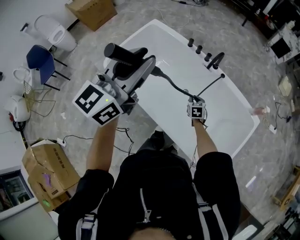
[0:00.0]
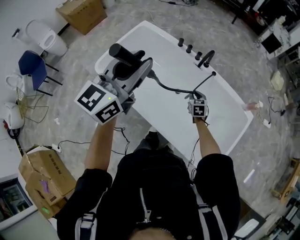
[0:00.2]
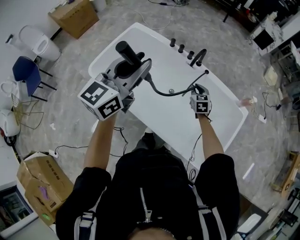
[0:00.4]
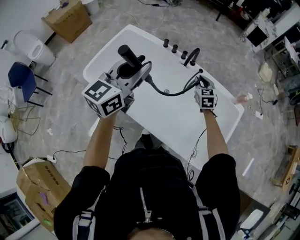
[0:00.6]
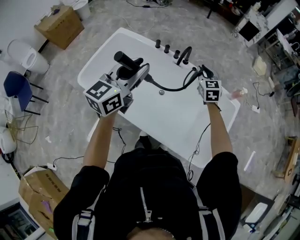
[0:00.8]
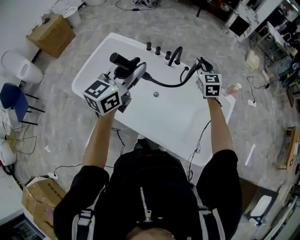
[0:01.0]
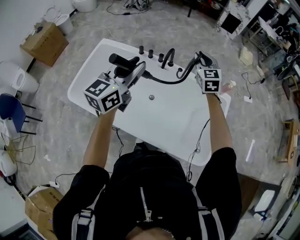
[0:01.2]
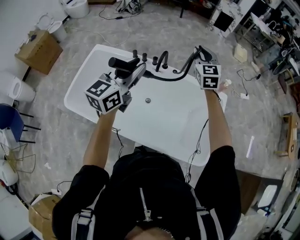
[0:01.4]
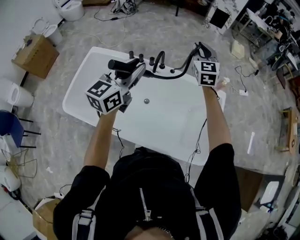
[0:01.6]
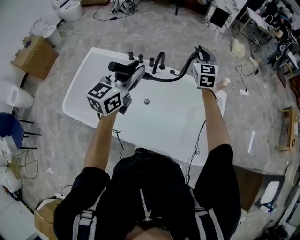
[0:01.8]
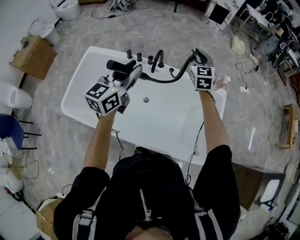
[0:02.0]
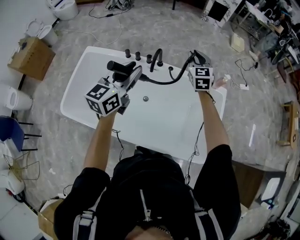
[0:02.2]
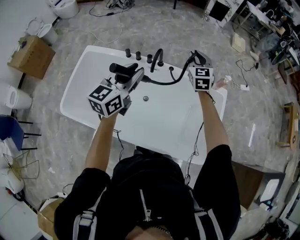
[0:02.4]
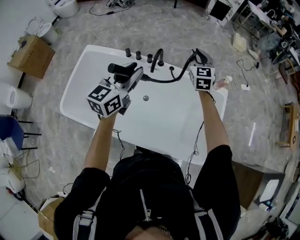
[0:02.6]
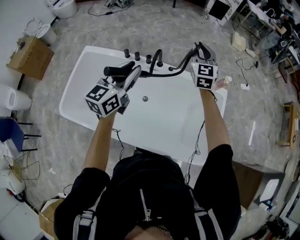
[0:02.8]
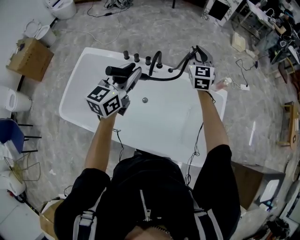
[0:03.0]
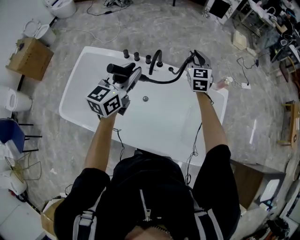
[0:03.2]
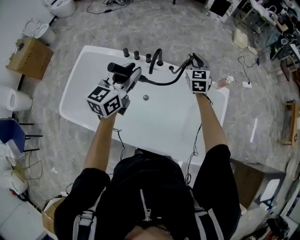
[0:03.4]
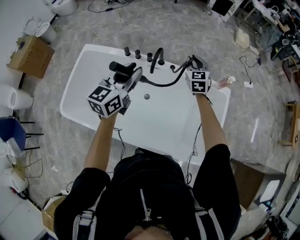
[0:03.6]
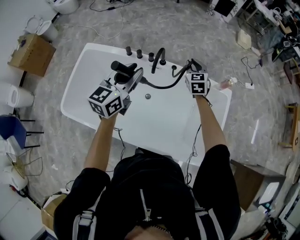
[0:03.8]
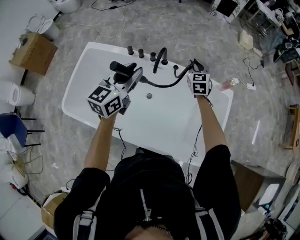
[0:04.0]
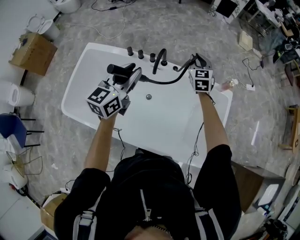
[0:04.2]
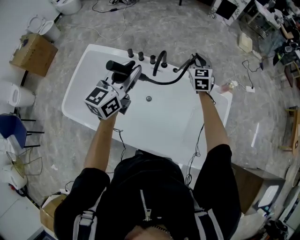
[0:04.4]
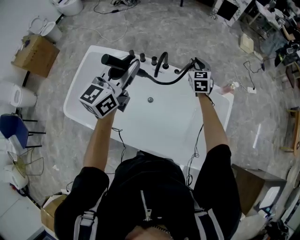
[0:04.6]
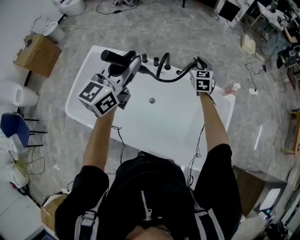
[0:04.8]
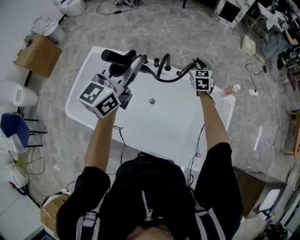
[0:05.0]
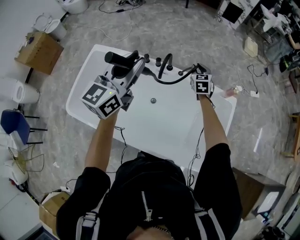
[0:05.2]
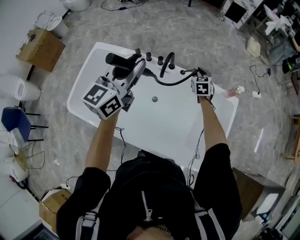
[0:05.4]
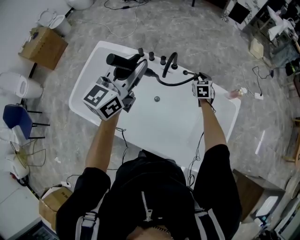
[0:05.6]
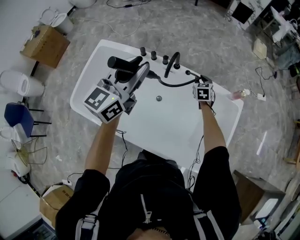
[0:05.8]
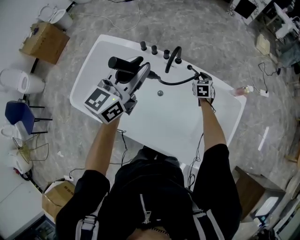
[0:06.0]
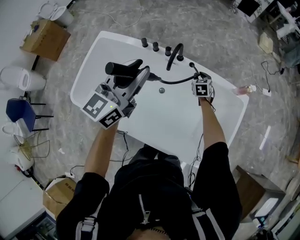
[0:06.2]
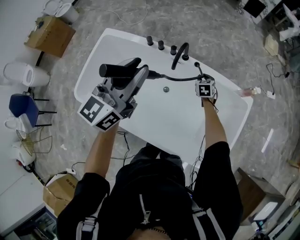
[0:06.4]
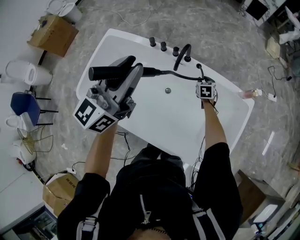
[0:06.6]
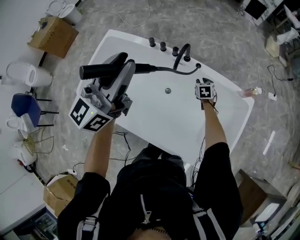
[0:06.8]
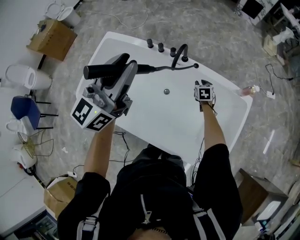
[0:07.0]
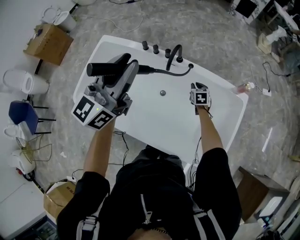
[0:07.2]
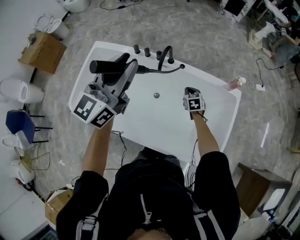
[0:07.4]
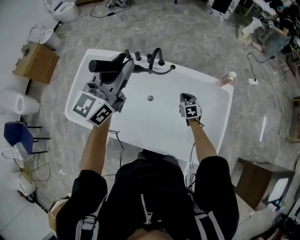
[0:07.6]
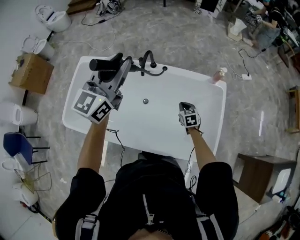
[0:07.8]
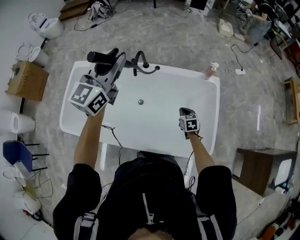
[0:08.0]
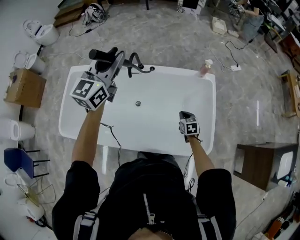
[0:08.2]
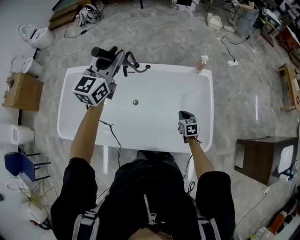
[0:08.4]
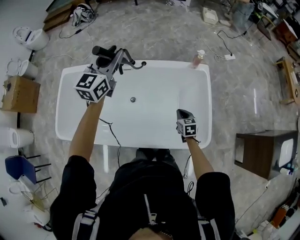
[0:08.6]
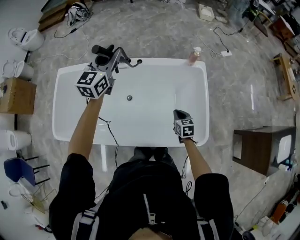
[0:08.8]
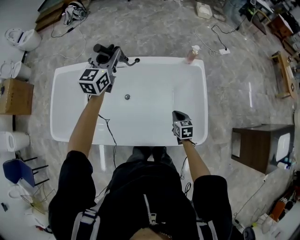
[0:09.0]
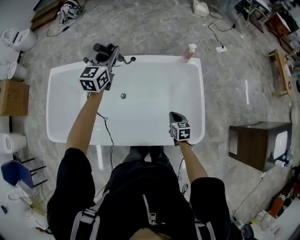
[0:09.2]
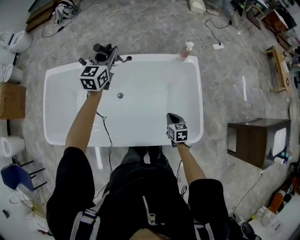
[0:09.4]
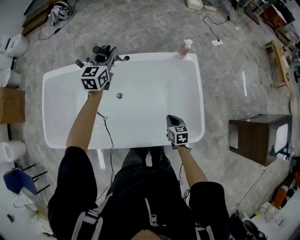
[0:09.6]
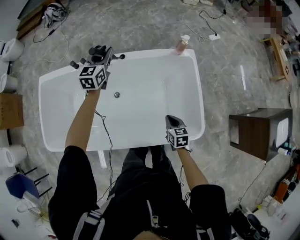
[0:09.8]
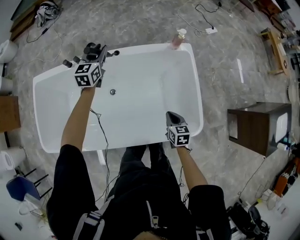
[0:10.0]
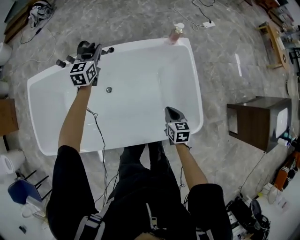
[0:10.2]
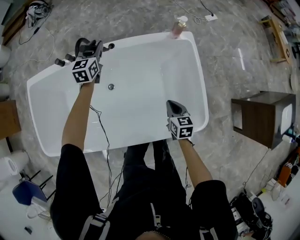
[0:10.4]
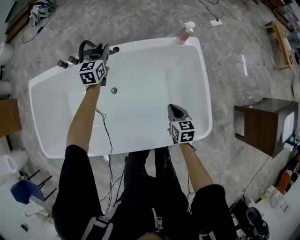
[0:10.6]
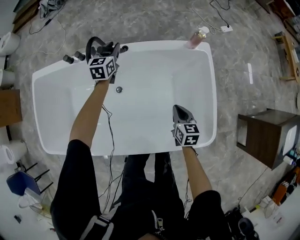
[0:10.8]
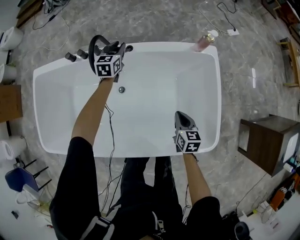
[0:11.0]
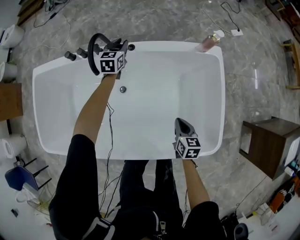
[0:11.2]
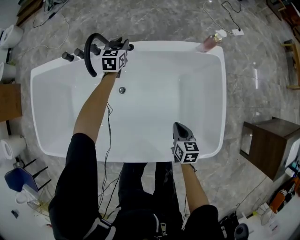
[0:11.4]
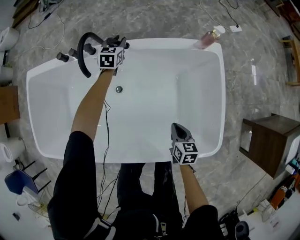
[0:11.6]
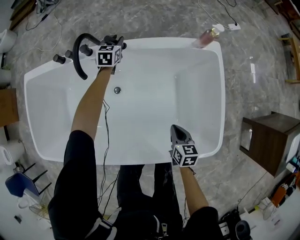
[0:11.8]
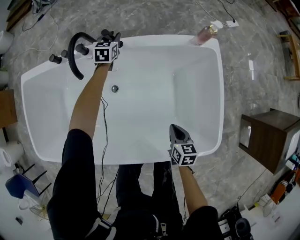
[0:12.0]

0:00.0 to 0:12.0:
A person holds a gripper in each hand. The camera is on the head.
0:00.0 to 0:01.6: The right gripper shifts about 50 cm upward and forward, and angles its fingers upward, by about 40 degrees. The left gripper shifts roughly 20 cm forward, to the right and downward, and rotates some 20 degrees.
0:01.6 to 0:03.0: The left gripper shifts roughly 10 cm forward and downward; the right gripper travels downward and forward by about 10 cm.
0:03.0 to 0:04.4: The right gripper shifts about 10 cm downward.
0:04.4 to 0:06.0: The right gripper shifts roughly 20 cm downward, and swivels some 20 degrees.
0:06.0 to 0:07.6: The left gripper is displaced upward by roughly 5 cm. The right gripper travels backward by approximately 15 cm.
0:07.6 to 0:09.0: The right gripper shifts some 25 cm backward and to the right, and swivels roughly 20 degrees; the left gripper is displaced forward, downward and to the right by roughly 20 cm.
0:09.0 to 0:10.4: The left gripper travels downward and forward by approximately 25 cm.
0:10.4 to 0:12.0: The right gripper shifts roughly 10 cm downward, while the left gripper shifts some 25 cm downward and forward.

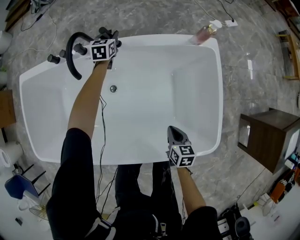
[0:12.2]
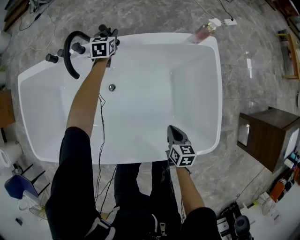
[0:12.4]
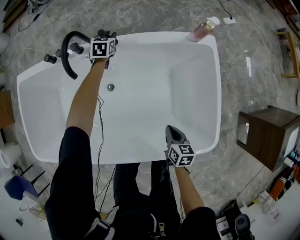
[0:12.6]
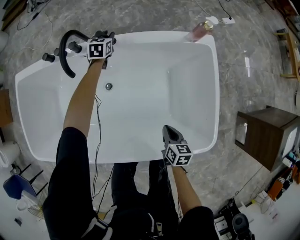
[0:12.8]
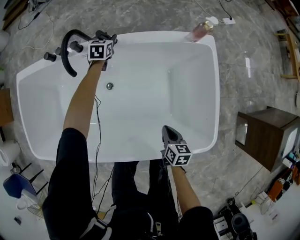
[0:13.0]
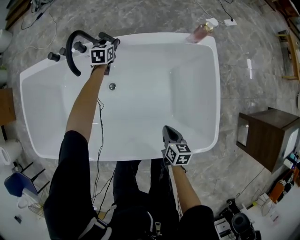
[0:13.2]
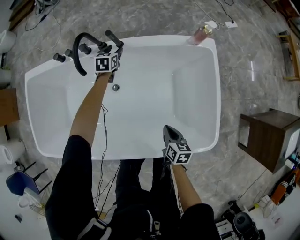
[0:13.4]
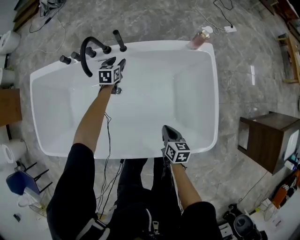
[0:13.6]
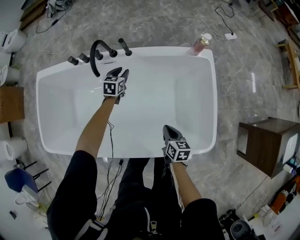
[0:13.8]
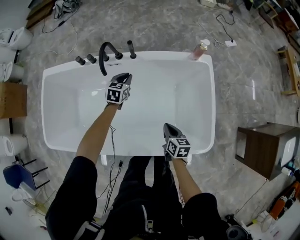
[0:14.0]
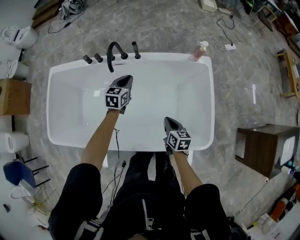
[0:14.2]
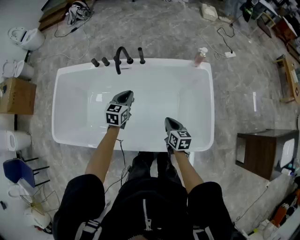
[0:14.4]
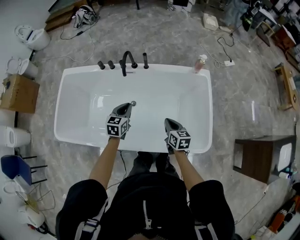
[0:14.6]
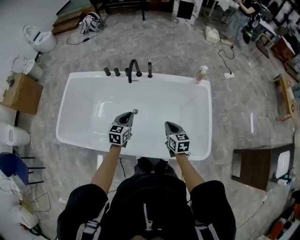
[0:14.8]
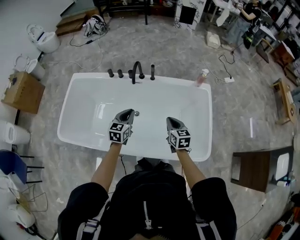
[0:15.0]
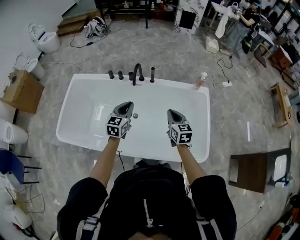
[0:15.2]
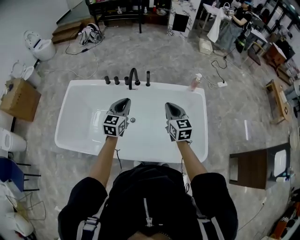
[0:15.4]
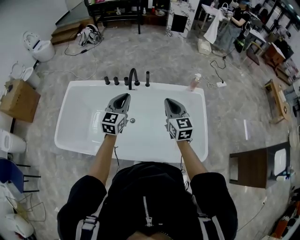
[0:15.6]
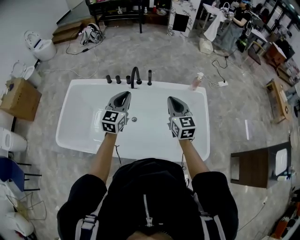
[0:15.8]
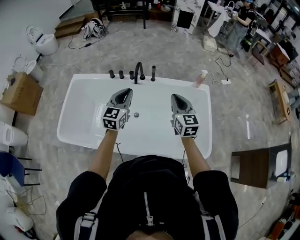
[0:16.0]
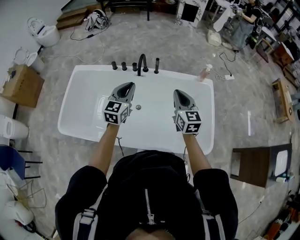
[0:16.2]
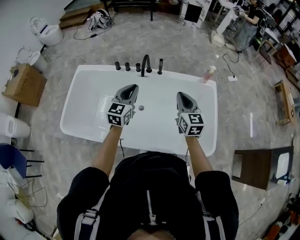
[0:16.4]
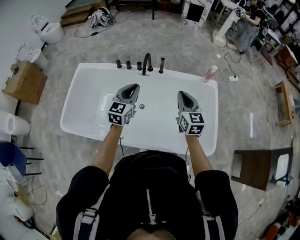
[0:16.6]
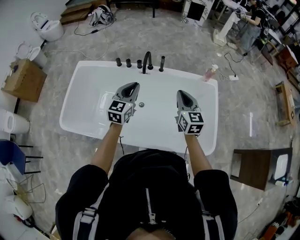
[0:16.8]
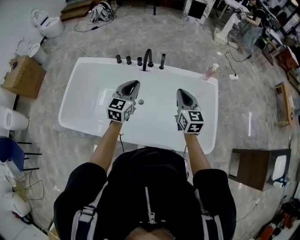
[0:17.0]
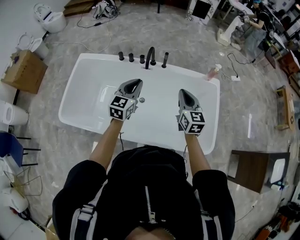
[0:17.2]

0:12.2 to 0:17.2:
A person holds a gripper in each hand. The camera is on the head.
0:12.2 to 0:13.8: The right gripper travels upward by some 5 cm, while the left gripper is displaced backward by roughly 20 cm.
0:13.8 to 0:15.6: The right gripper shifts about 35 cm upward, and points its fingers about 30 degrees further upward. Meanwhile the left gripper shifts roughly 40 cm upward and backward, tilts its fingers some 30 degrees upward, and closes.
0:15.6 to 0:17.2: There are only small adjustments of the grippers.

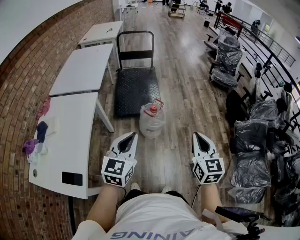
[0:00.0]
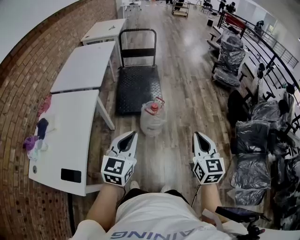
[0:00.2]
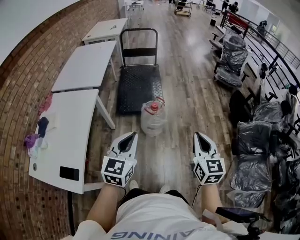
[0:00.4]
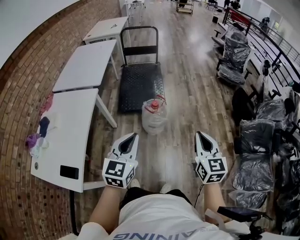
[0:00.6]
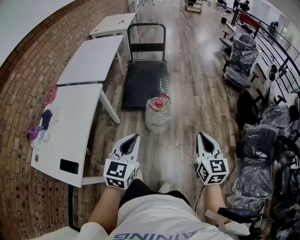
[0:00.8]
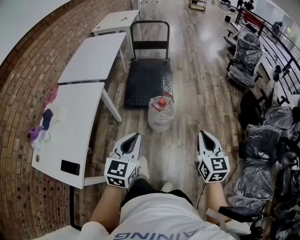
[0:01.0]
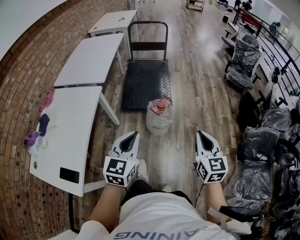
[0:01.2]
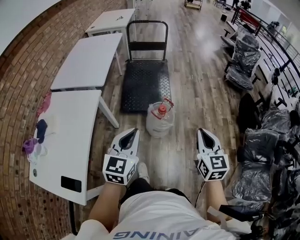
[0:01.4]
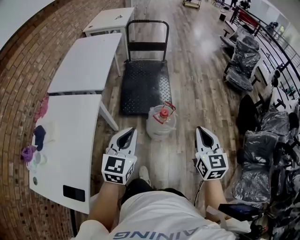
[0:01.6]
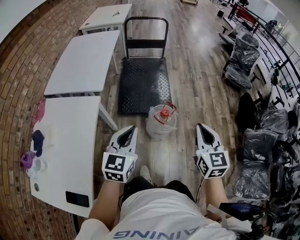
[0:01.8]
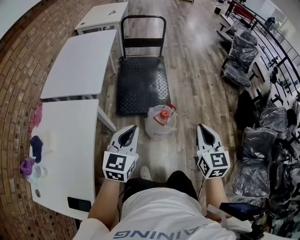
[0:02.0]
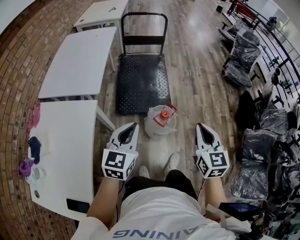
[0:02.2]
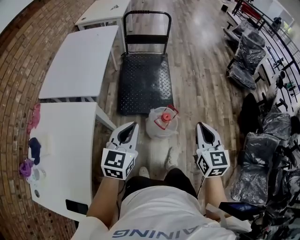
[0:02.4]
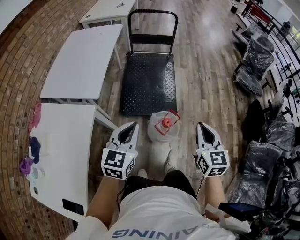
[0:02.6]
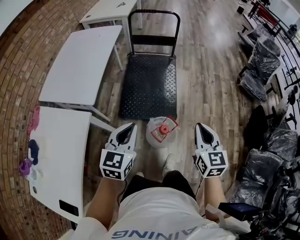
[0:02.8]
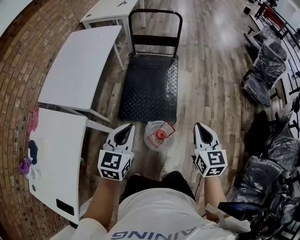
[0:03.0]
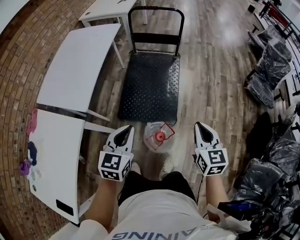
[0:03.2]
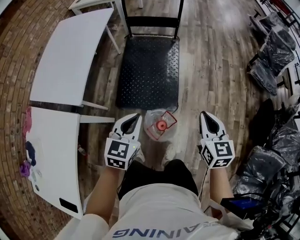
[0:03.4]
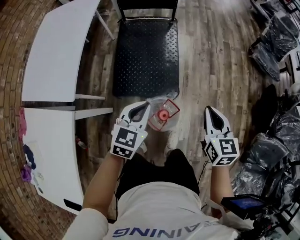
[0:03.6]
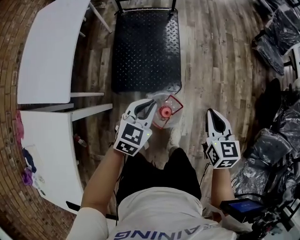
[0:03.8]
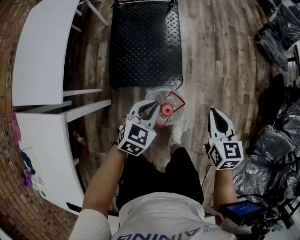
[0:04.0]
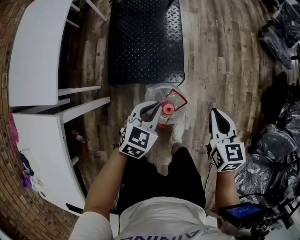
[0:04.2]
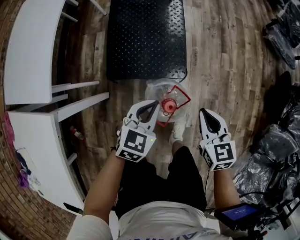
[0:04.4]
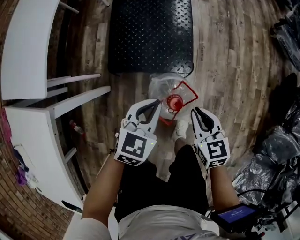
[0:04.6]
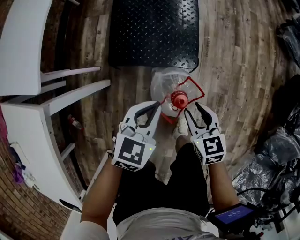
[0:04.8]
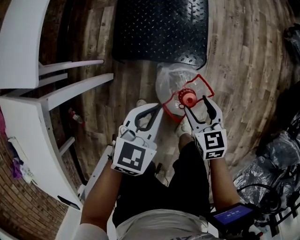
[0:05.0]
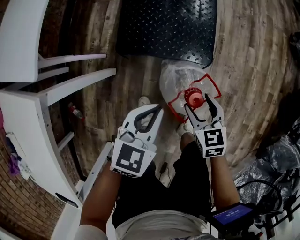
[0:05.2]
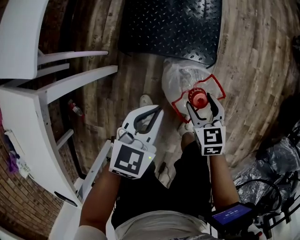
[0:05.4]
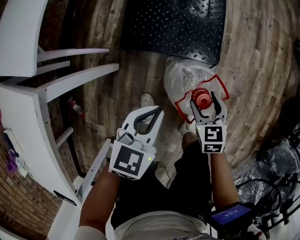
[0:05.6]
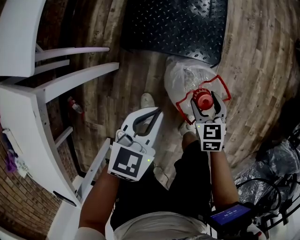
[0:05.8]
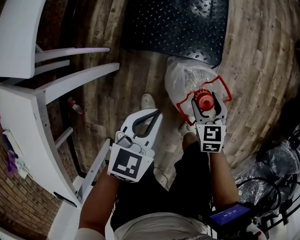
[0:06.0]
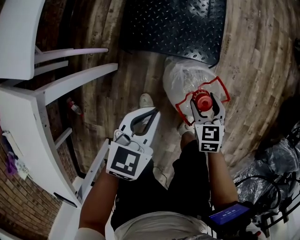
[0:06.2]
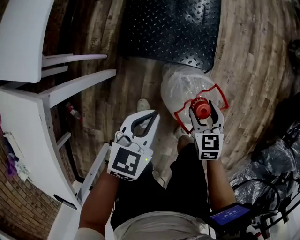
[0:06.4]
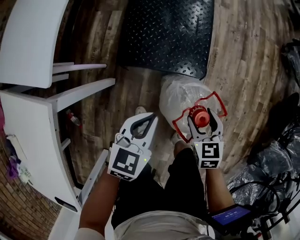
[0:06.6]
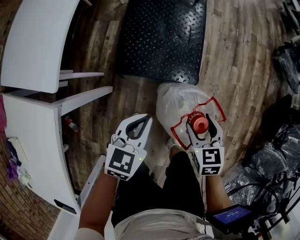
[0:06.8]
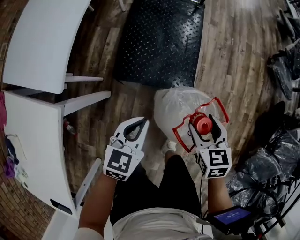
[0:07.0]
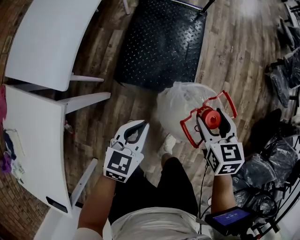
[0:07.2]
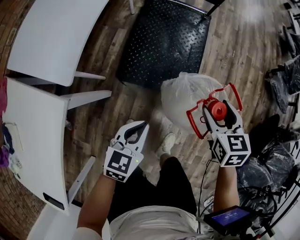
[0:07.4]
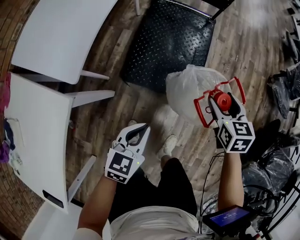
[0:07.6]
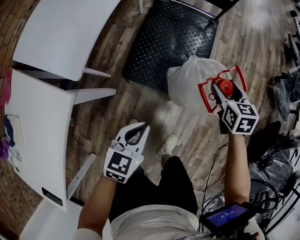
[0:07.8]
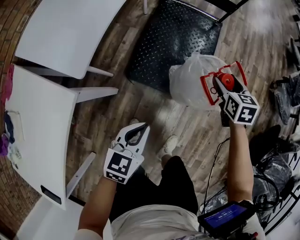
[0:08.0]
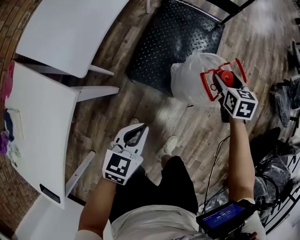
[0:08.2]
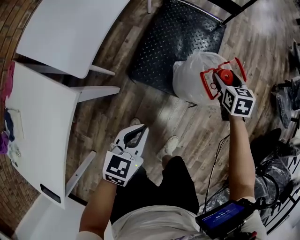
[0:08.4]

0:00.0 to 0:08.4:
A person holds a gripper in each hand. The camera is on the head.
0:00.0 to 0:01.4: The two grippers go approximately 10 cm forward.
0:01.4 to 0:02.8: The two grippers go about 30 cm forward.
0:02.8 to 0:04.2: The two grippers go roughly 25 cm downward and forward. The left gripper turns by roughly 30 degrees.
0:04.2 to 0:05.6: The left gripper goes some 15 cm to the left, downward and backward. Meanwhile the right gripper shifts some 30 cm downward and to the left, rotates about 20 degrees, and opens.
0:05.6 to 0:07.0: The left gripper moves upward, roughly 10 cm; the right gripper heads upward, covering roughly 20 cm.
0:07.0 to 0:08.4: The left gripper moves to the left, roughly 5 cm. The right gripper heads forward, covering approximately 25 cm.
